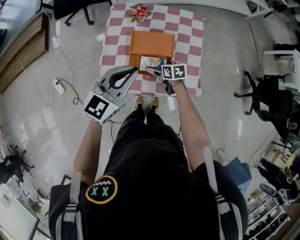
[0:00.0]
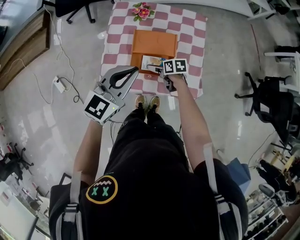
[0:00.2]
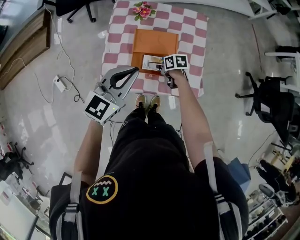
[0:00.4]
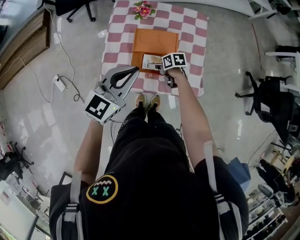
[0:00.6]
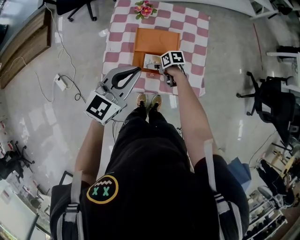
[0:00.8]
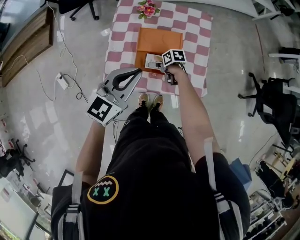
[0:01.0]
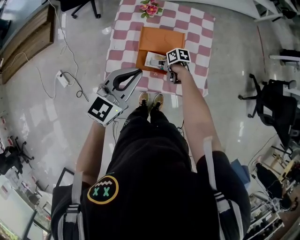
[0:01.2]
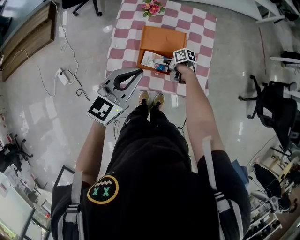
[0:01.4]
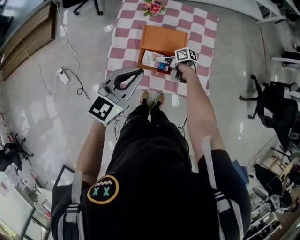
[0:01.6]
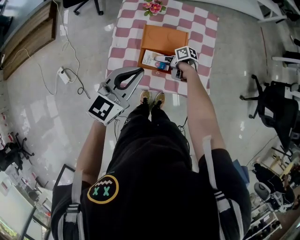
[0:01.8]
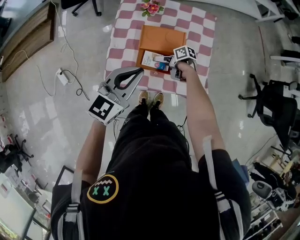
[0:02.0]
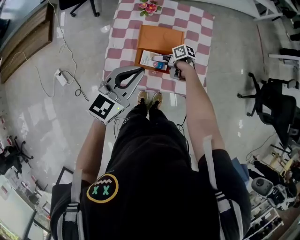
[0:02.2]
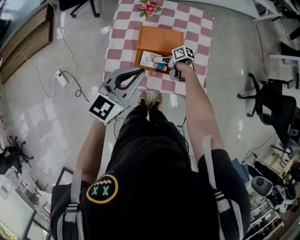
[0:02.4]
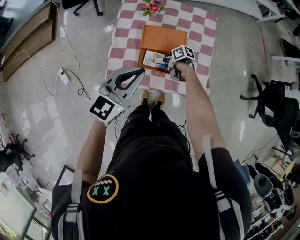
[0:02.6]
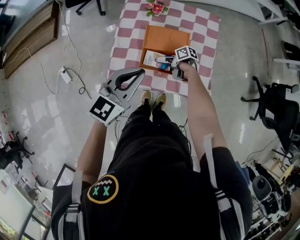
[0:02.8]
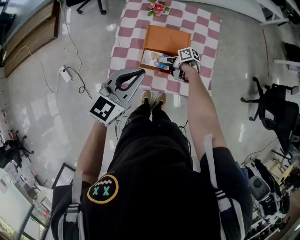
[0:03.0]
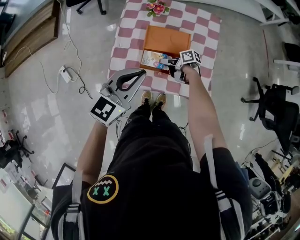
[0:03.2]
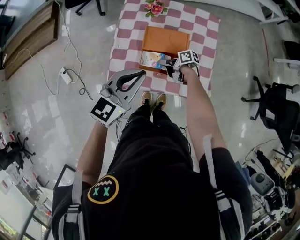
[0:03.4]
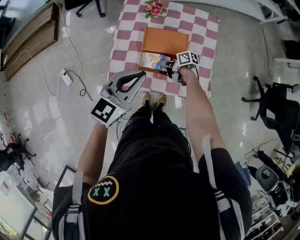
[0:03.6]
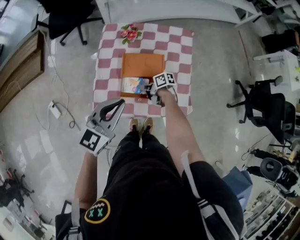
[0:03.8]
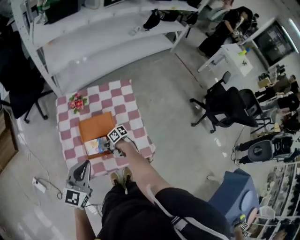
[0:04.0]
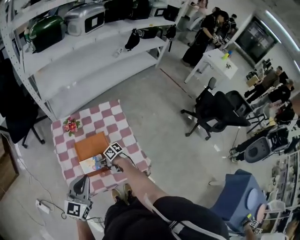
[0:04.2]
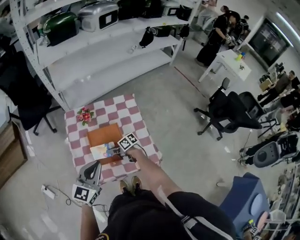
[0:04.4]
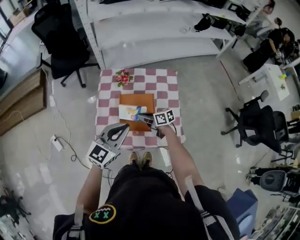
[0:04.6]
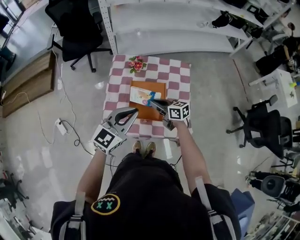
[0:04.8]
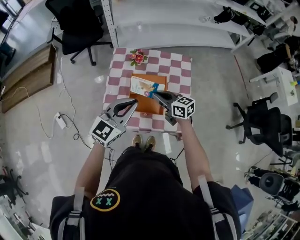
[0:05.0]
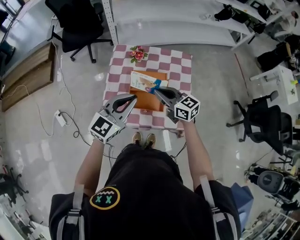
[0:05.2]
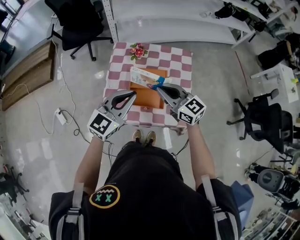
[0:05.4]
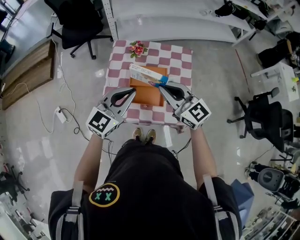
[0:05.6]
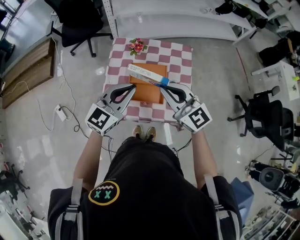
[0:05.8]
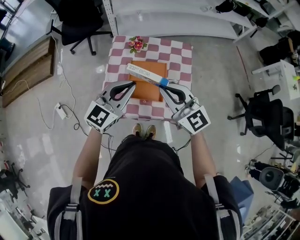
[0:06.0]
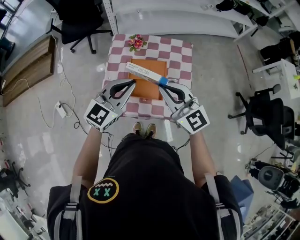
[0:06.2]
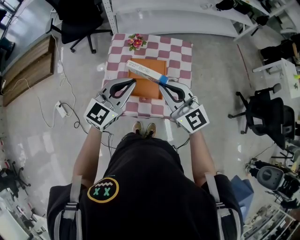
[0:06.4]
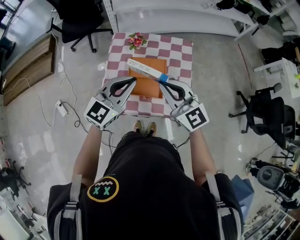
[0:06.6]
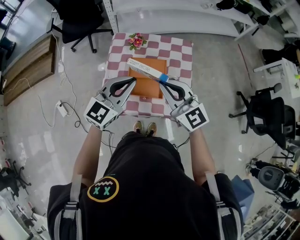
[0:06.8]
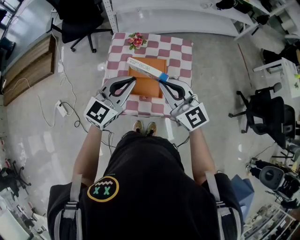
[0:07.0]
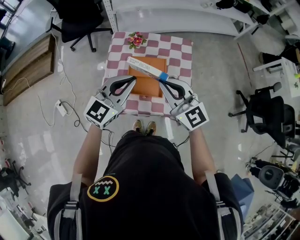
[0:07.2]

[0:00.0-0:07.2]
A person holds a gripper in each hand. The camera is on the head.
0:00.0 to 0:01.4: The right gripper shifts by some 5 cm, and rotates approximately 40 degrees.
0:01.4 to 0:02.8: The grippers make only small movements.
0:02.8 to 0:04.4: The left gripper moves some 5 cm. Meanwhile the right gripper travels upward by about 10 cm, swivels roughly 30 degrees, and closes up.
0:04.4 to 0:05.8: The left gripper shifts by some 5 cm, while the right gripper goes about 30 cm upward, and twists some 70 degrees counterclockwise, seen from behind.
0:05.8 to 0:07.2: The grippers make only small movements.

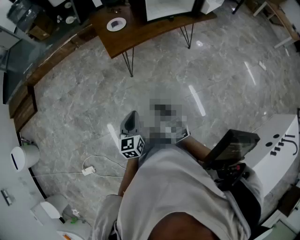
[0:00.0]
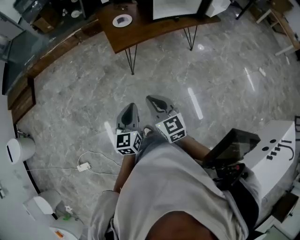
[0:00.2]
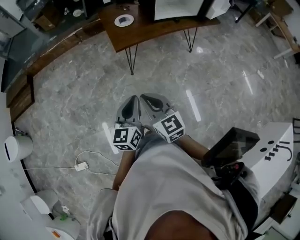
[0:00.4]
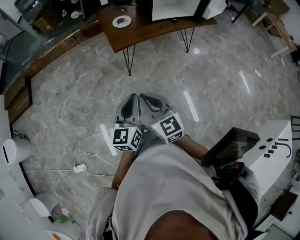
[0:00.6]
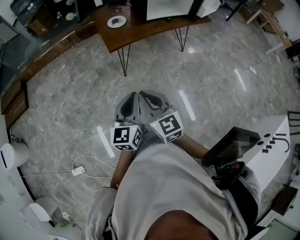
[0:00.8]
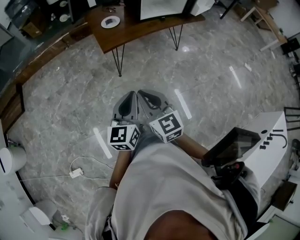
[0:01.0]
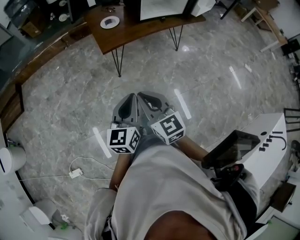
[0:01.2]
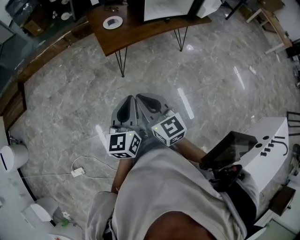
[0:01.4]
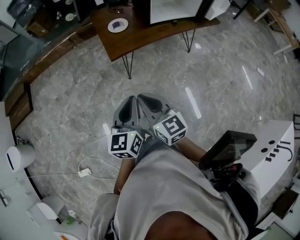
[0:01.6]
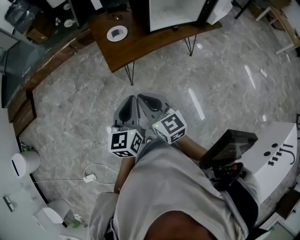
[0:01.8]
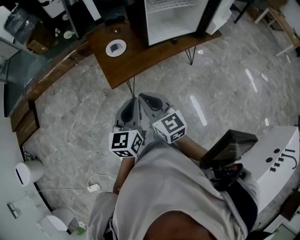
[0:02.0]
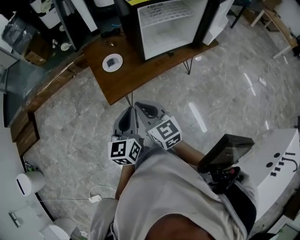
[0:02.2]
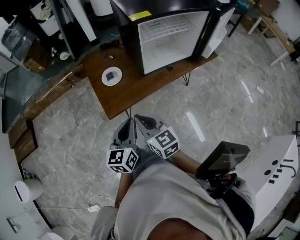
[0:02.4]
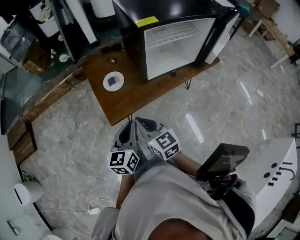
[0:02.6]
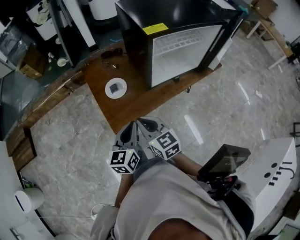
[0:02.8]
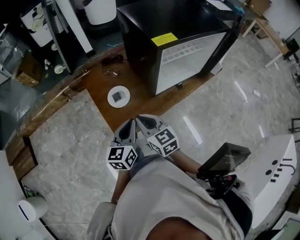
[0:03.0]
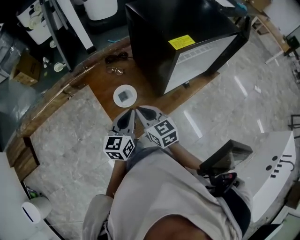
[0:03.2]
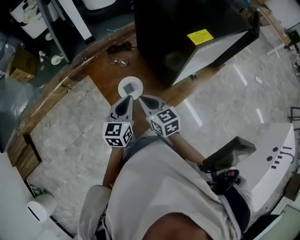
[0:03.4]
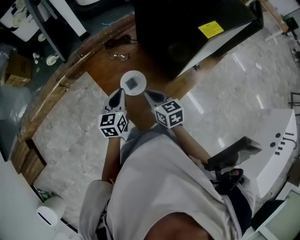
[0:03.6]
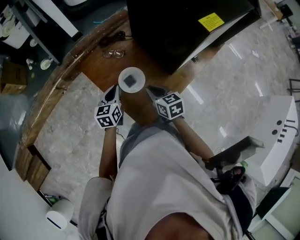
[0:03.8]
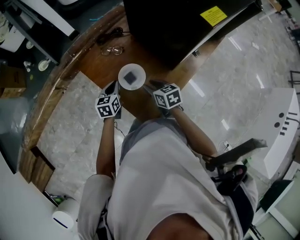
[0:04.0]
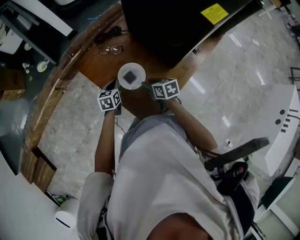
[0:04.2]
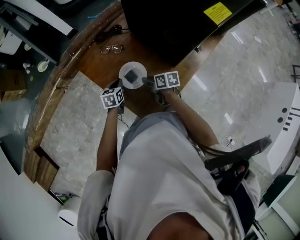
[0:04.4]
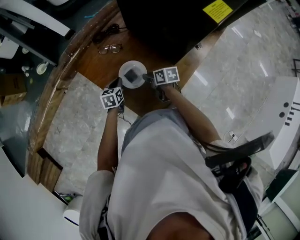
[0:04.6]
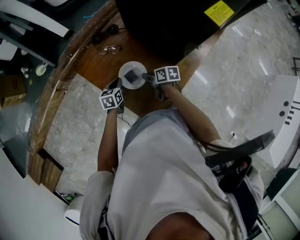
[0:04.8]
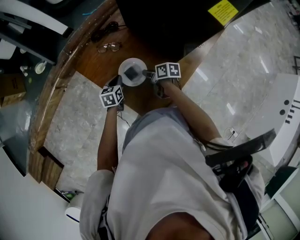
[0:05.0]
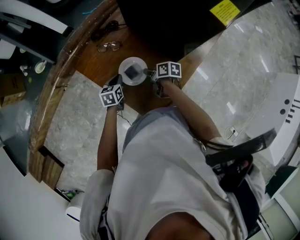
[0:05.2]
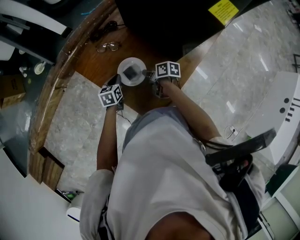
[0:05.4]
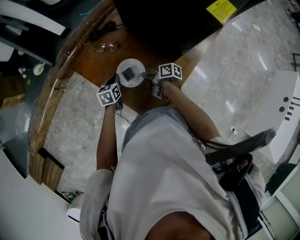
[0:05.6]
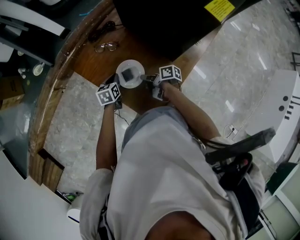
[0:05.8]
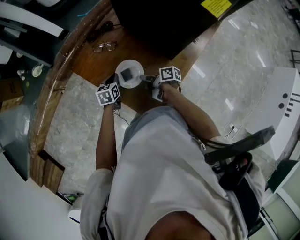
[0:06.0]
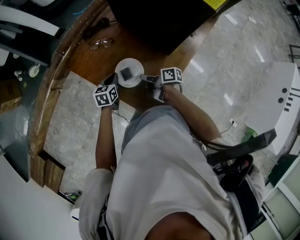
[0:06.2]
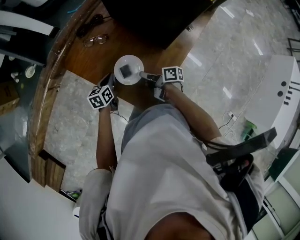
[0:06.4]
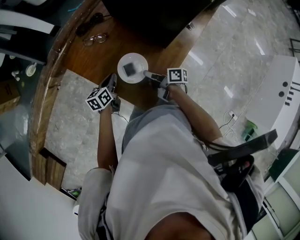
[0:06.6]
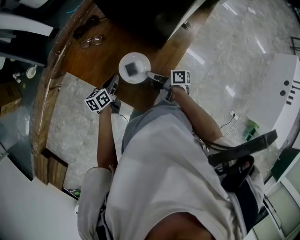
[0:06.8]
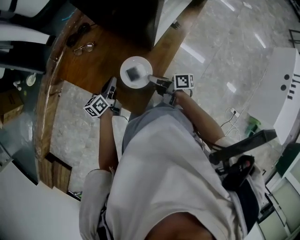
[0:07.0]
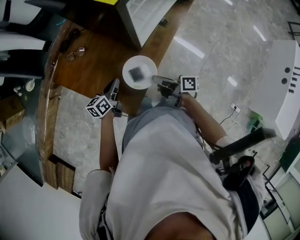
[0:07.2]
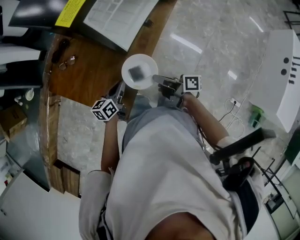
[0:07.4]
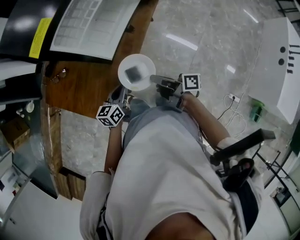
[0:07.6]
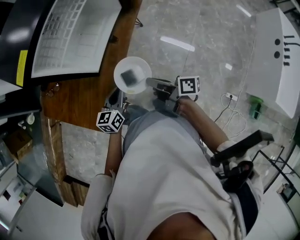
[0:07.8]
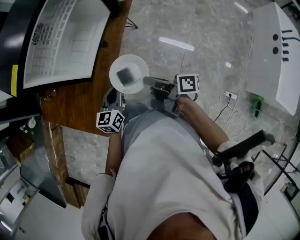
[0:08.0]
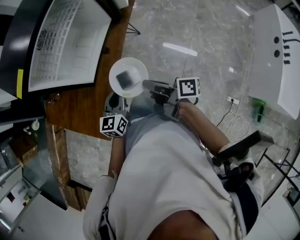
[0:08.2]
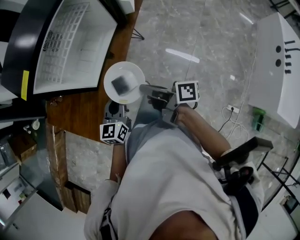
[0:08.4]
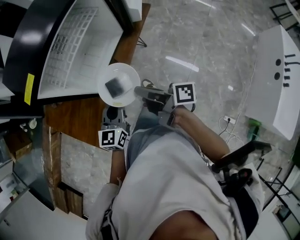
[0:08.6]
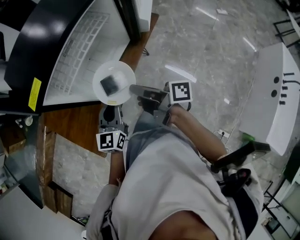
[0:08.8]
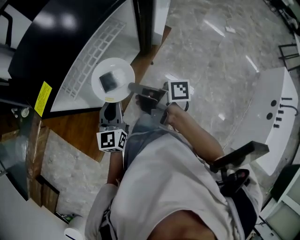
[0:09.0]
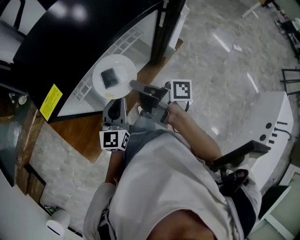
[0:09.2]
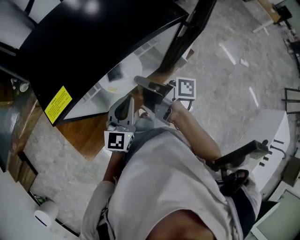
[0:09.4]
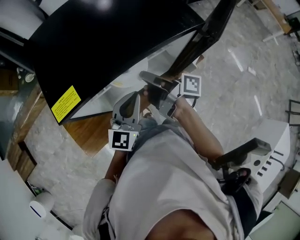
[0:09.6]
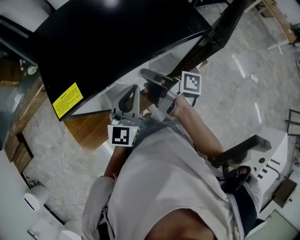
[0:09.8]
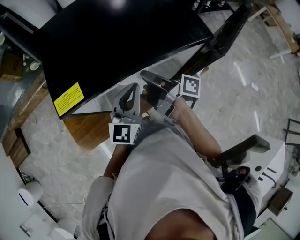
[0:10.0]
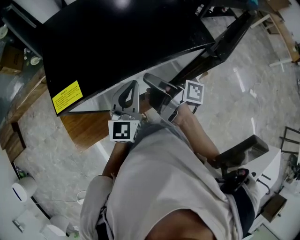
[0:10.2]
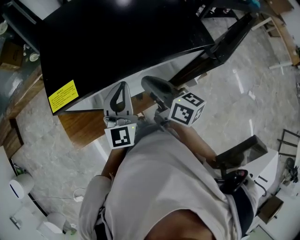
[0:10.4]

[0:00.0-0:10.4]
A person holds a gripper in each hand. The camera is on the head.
0:00.0 to 0:01.4: The right gripper travels upward and to the left by approximately 15 cm; the left gripper goes some 15 cm upward.
0:01.4 to 0:03.0: Both grippers are carried forward, about 60 cm.
0:03.0 to 0:04.4: The left gripper is displaced forward, downward and to the left by about 50 cm, and tips its fingers downward by some 30 degrees, while the right gripper goes about 40 cm downward and forward, rolls clockwise, seen from behind, by about 50 degrees, and opens up.
0:04.4 to 0:06.0: The right gripper turns by some 40 degrees, and closes.
0:06.0 to 0:07.4: The grippers both shift to the right and backward by approximately 35 cm. The left gripper changes its angle by roughly 30 degrees, while the right gripper swivels approximately 20 degrees.
0:07.4 to 0:09.0: The right gripper moves to the right, forward and upward, approximately 40 cm; the left gripper is displaced to the right, upward and forward by some 40 cm, and changes its angle by some 40 degrees.
0:09.0 to 0:10.4: The right gripper goes roughly 20 cm forward, and changes its angle by approximately 40 degrees, while the left gripper shifts about 20 cm forward and upward, and rotates roughly 40 degrees.

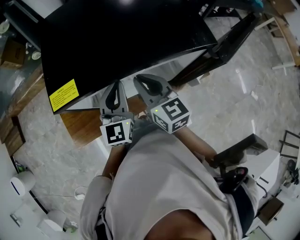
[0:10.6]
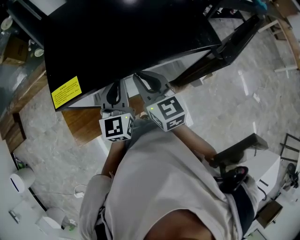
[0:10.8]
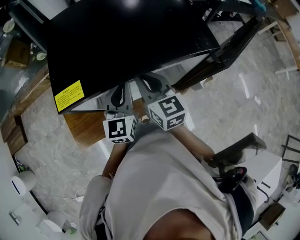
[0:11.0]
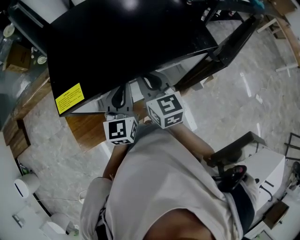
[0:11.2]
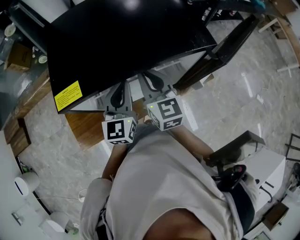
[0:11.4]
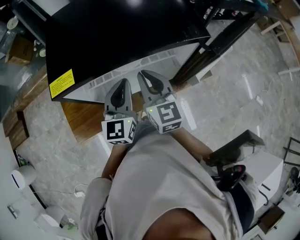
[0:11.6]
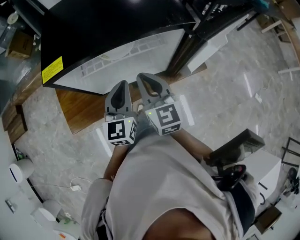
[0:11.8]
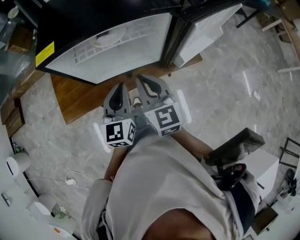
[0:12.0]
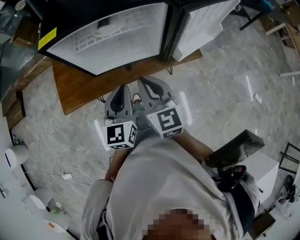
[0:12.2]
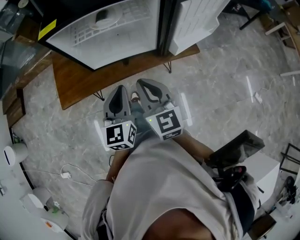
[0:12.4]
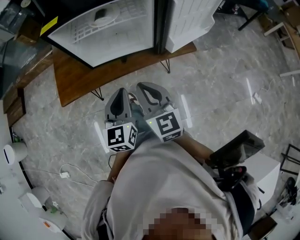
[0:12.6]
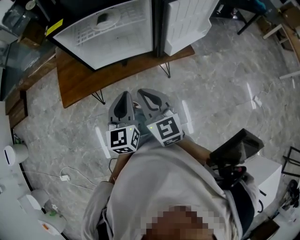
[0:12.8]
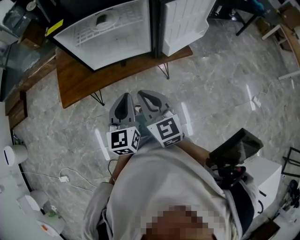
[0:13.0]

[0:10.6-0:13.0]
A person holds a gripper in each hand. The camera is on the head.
0:10.6 to 0:11.8: The two grippers go approximately 15 cm backward and to the right.
0:11.8 to 0:13.0: The grippers both shift backward by some 30 cm.

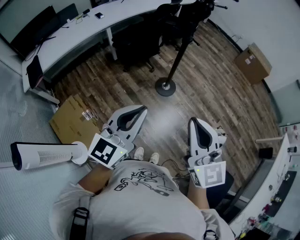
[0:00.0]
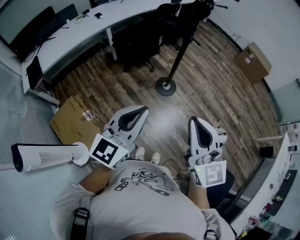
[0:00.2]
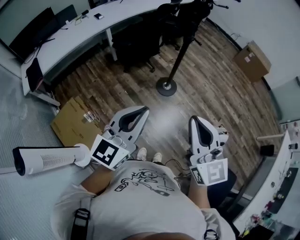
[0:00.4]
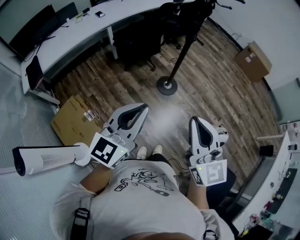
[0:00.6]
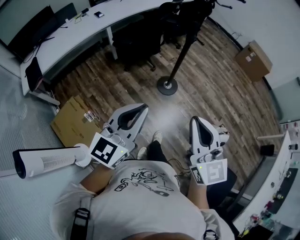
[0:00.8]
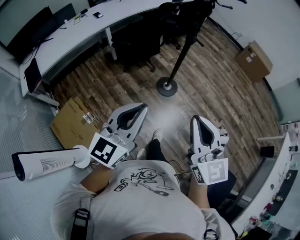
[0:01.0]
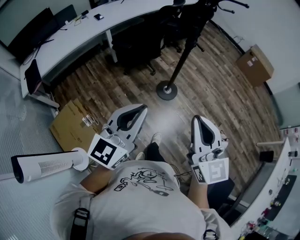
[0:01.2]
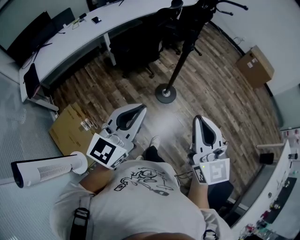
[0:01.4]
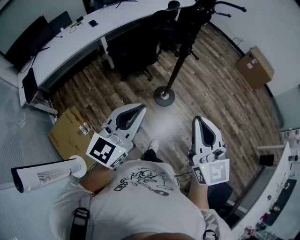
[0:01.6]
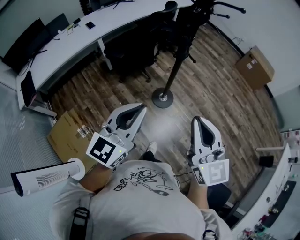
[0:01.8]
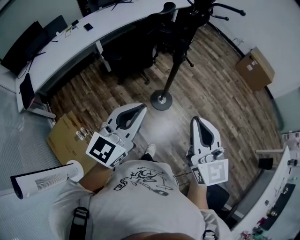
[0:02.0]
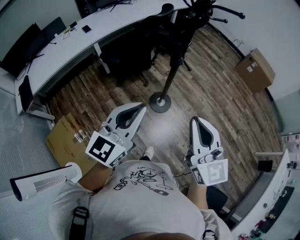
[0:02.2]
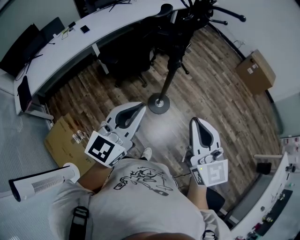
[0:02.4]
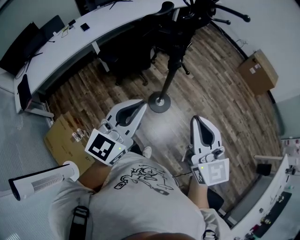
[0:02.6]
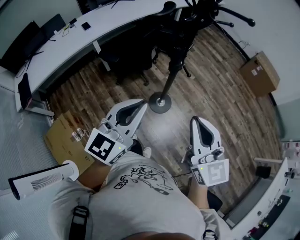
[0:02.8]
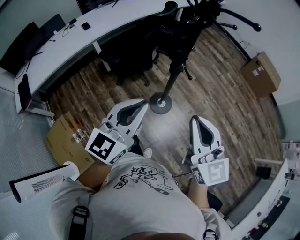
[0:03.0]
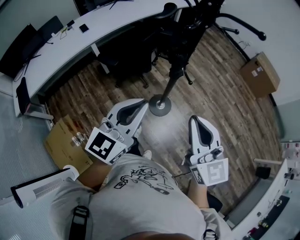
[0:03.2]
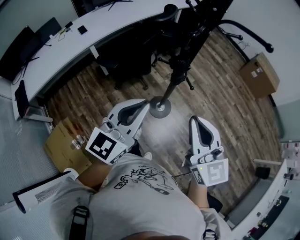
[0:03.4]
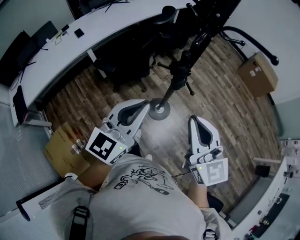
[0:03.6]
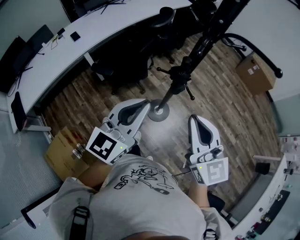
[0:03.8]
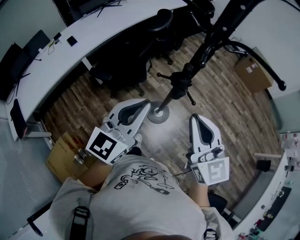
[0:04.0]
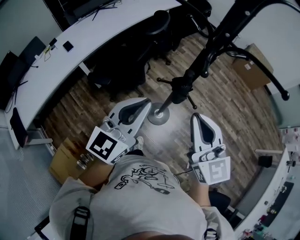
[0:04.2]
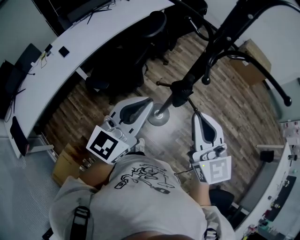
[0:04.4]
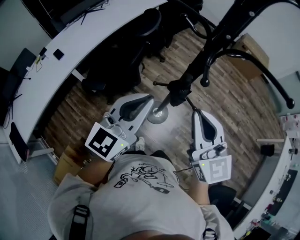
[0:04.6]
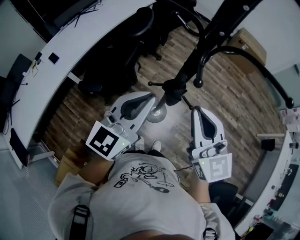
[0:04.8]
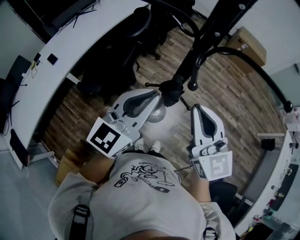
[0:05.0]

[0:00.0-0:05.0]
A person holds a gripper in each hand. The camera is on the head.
0:00.0 to 0:01.6: The grippers both shift forward by roughly 15 cm.
0:01.6 to 0:03.4: Both grippers move forward, approximately 25 cm.
0:03.4 to 0:05.0: The two grippers go roughly 20 cm forward.
